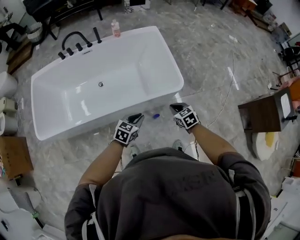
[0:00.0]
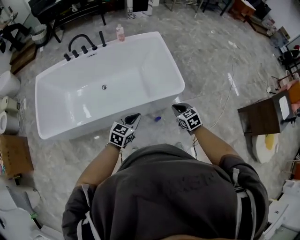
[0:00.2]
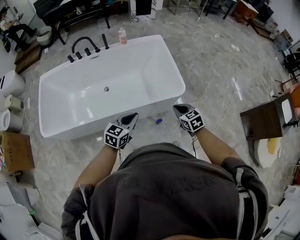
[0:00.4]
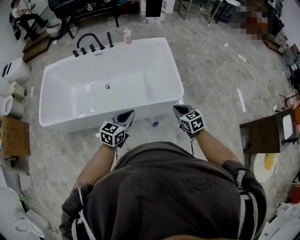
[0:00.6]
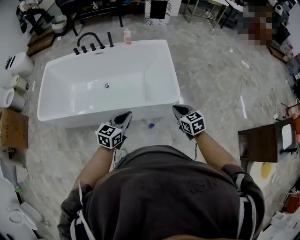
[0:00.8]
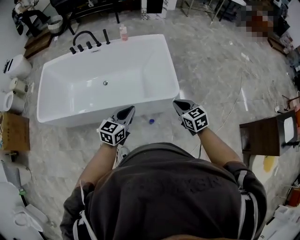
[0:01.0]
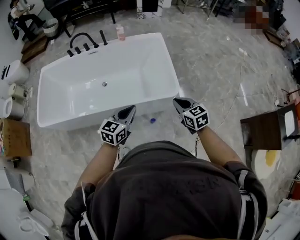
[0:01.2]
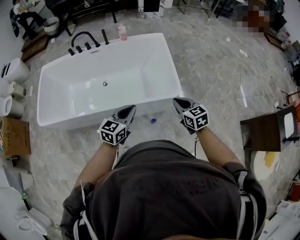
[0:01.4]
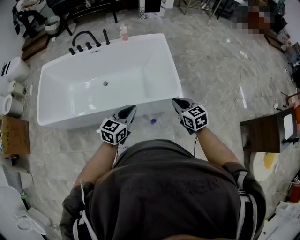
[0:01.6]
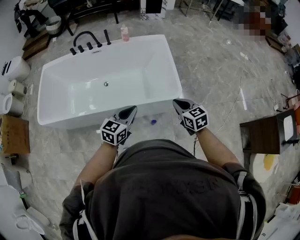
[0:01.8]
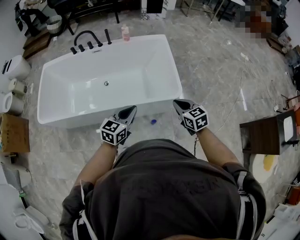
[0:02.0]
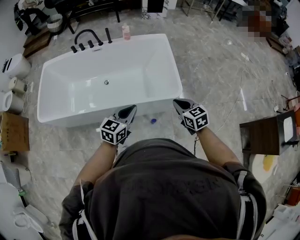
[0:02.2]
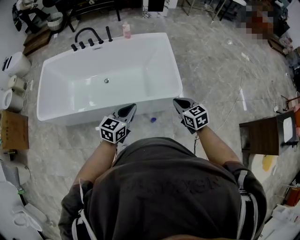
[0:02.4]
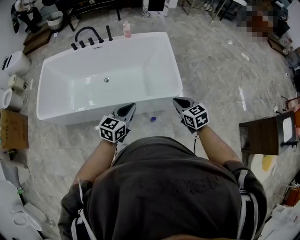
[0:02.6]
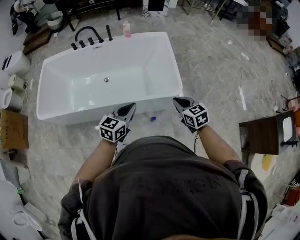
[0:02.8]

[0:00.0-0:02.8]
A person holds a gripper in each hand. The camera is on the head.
0:00.0 to 0:01.4: The right gripper shifts approximately 15 cm upward and to the right. The left gripper travels upward by about 15 cm, and swivels about 20 degrees.
0:01.4 to 0:02.8: The grippers move only a little.

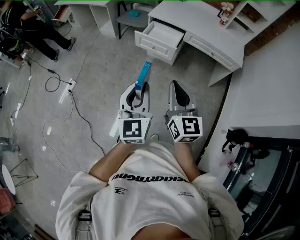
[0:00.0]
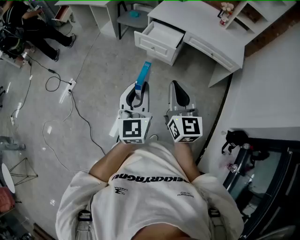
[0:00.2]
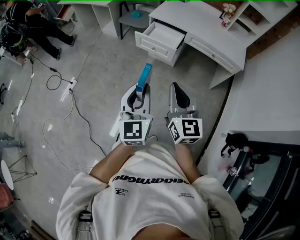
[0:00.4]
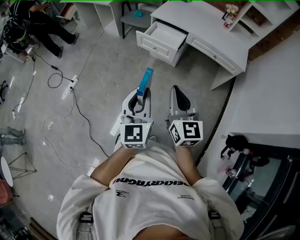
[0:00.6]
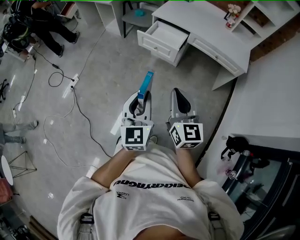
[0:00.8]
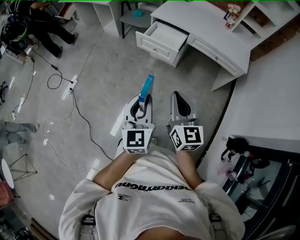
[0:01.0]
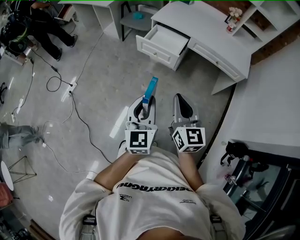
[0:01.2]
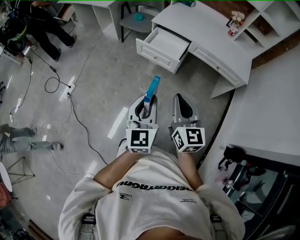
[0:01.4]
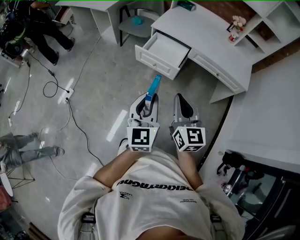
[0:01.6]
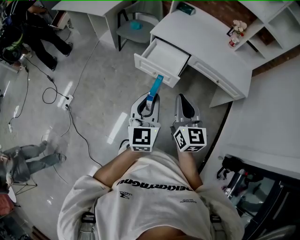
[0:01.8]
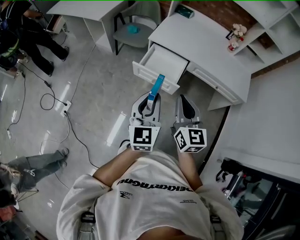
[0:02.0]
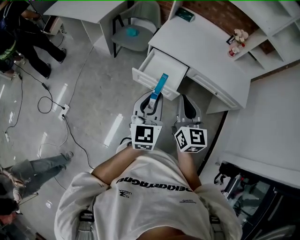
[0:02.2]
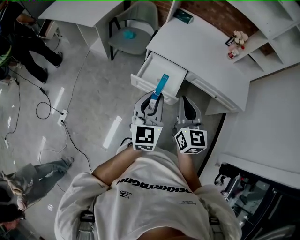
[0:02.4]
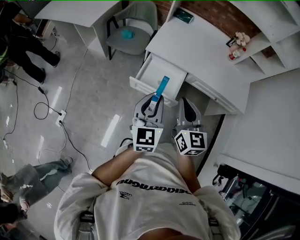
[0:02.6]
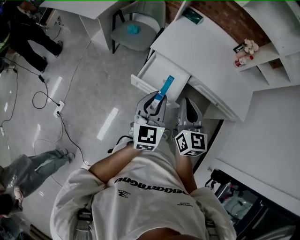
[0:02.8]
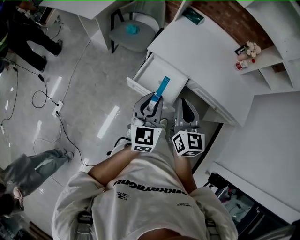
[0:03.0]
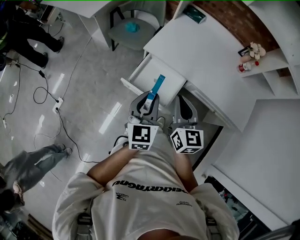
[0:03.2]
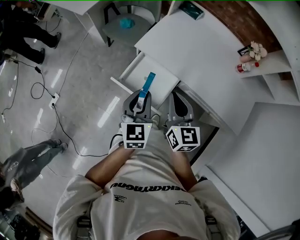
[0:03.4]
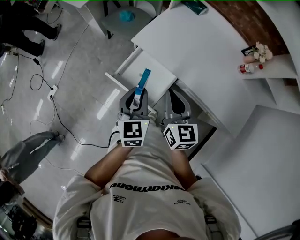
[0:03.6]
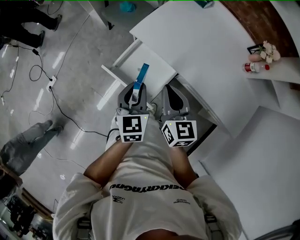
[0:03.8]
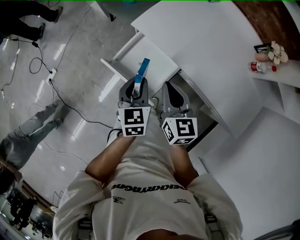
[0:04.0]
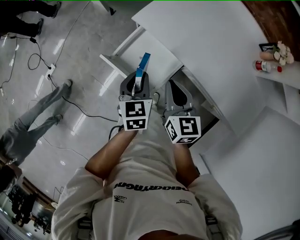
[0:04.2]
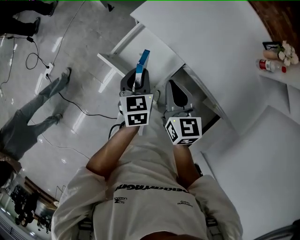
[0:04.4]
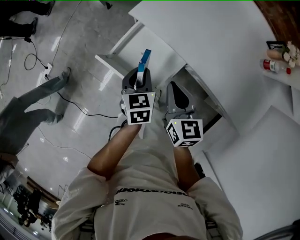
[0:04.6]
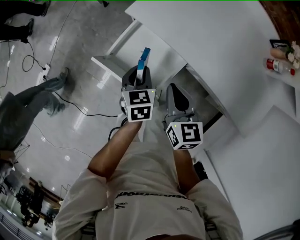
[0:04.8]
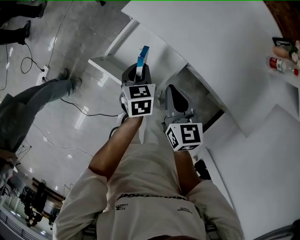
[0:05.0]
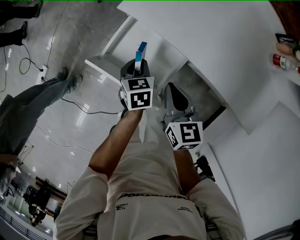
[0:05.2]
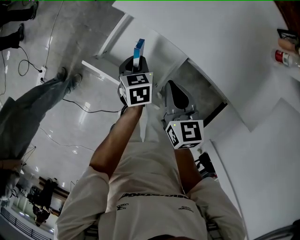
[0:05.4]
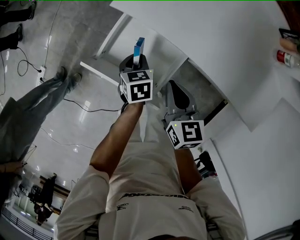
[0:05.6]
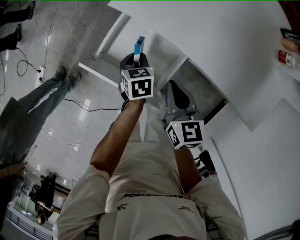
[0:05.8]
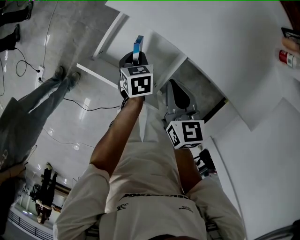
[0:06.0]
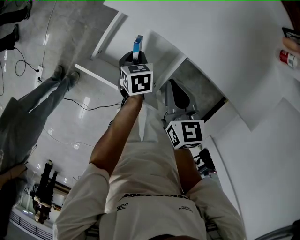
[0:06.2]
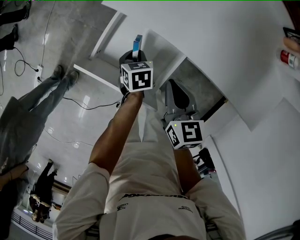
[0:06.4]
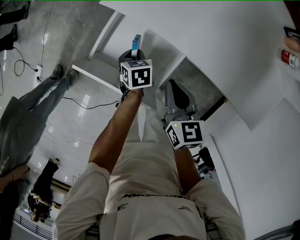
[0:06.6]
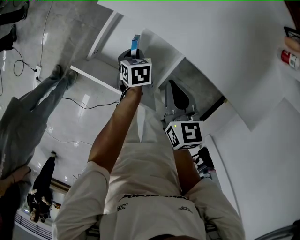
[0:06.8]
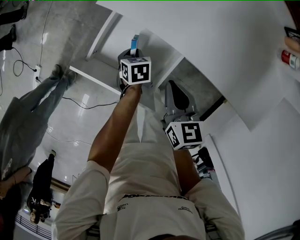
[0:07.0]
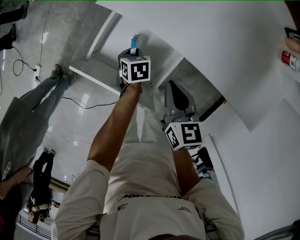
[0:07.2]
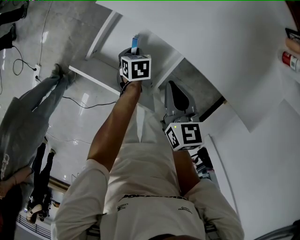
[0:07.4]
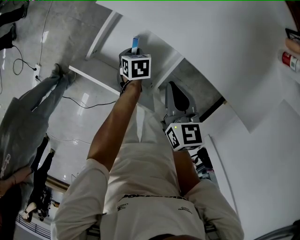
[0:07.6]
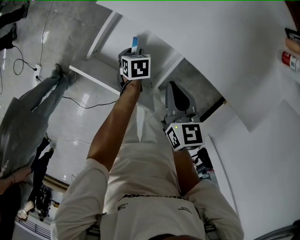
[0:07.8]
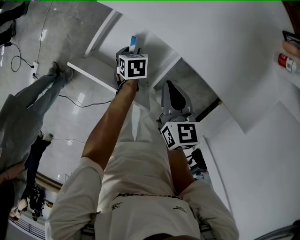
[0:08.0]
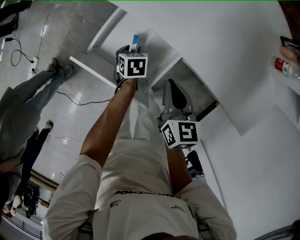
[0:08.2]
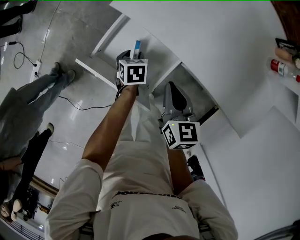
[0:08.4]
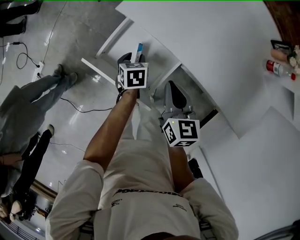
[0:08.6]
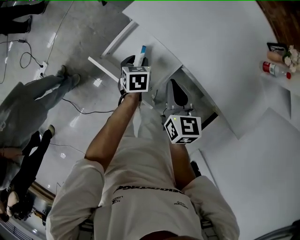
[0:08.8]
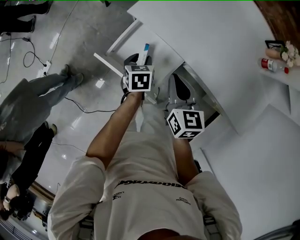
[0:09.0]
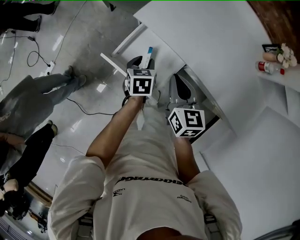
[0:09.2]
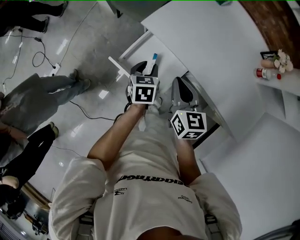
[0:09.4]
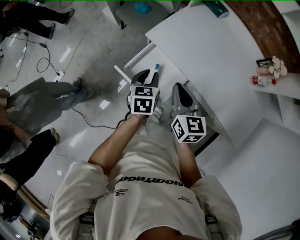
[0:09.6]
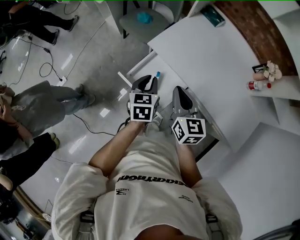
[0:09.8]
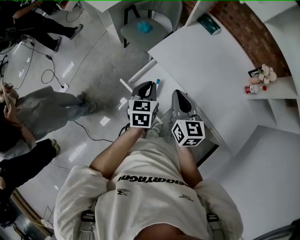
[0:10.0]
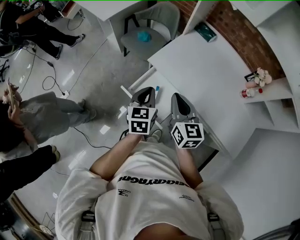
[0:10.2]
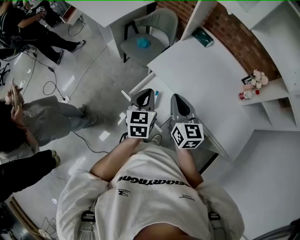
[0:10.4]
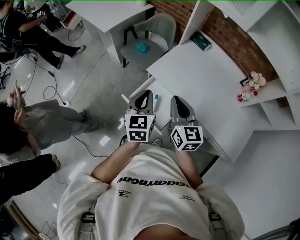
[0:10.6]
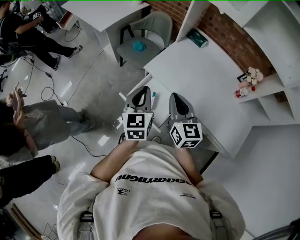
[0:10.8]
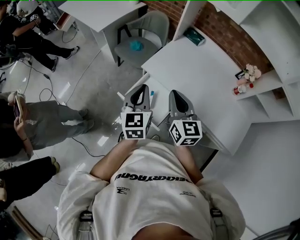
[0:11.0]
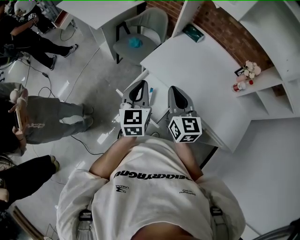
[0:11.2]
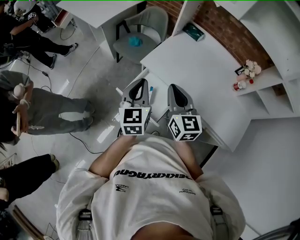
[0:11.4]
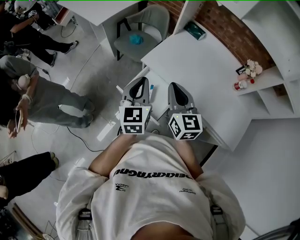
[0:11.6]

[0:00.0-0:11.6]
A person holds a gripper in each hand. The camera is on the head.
0:00.0 to 0:01.4: The left gripper goes about 15 cm forward, downward and to the right. The right gripper moves forward and downward, some 10 cm.
0:01.4 to 0:02.8: The grippers both shift forward by about 40 cm.
0:02.8 to 0:04.4: The grippers both shift downward, forward and to the right by some 30 cm. The right gripper rotates roughly 30 degrees, while the left gripper tilts its fingers about 30 degrees downward.
0:04.4 to 0:05.8: The left gripper shifts roughly 20 cm downward, and swivels roughly 20 degrees. Meanwhile the right gripper moves downward, approximately 10 cm.
0:05.8 to 0:07.2: The left gripper moves downward, roughly 10 cm.
0:07.2 to 0:08.8: The two grippers go about 10 cm upward. The left gripper opens its fingers.
0:08.8 to 0:10.2: Both grippers move upward, roughly 30 cm. The left gripper tips its fingers upward by about 30 degrees, and closes its fingers.
0:10.2 to 0:11.6: The left gripper goes approximately 10 cm upward, while the right gripper heads upward, covering approximately 5 cm.

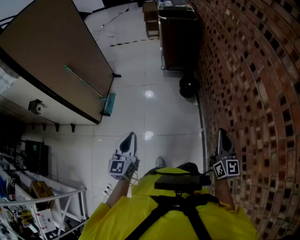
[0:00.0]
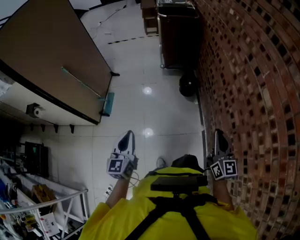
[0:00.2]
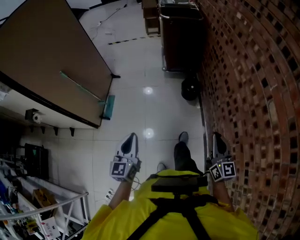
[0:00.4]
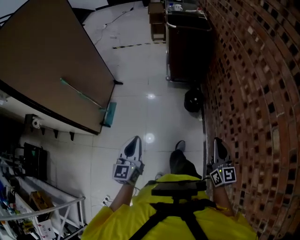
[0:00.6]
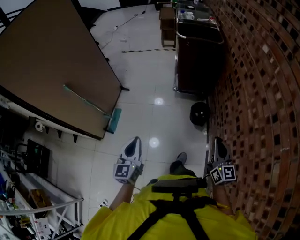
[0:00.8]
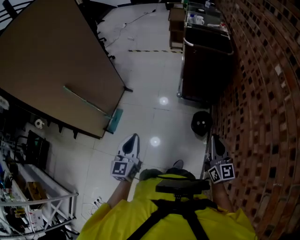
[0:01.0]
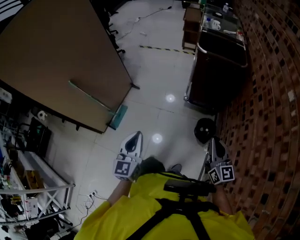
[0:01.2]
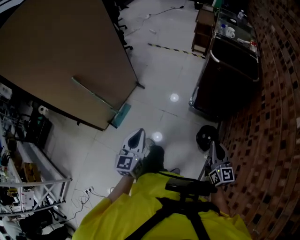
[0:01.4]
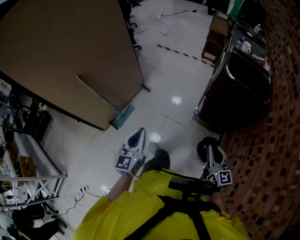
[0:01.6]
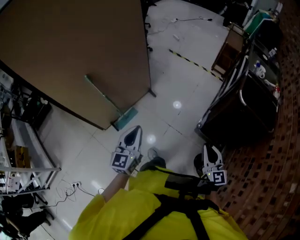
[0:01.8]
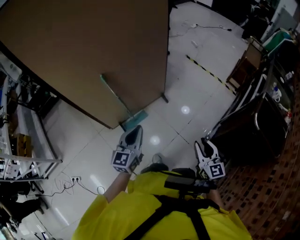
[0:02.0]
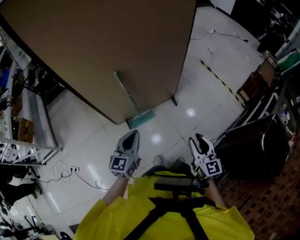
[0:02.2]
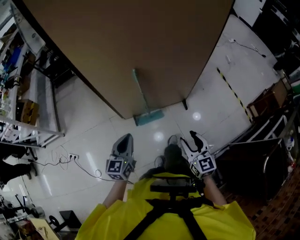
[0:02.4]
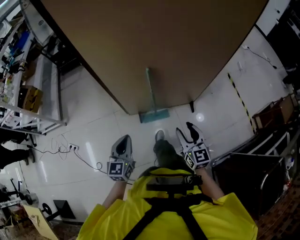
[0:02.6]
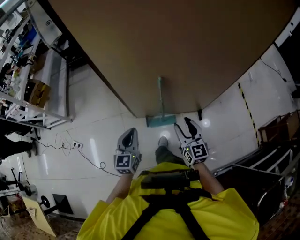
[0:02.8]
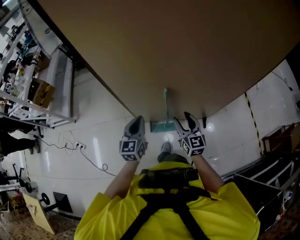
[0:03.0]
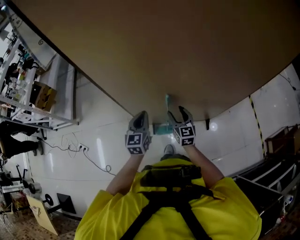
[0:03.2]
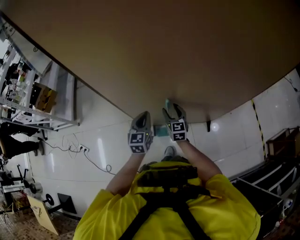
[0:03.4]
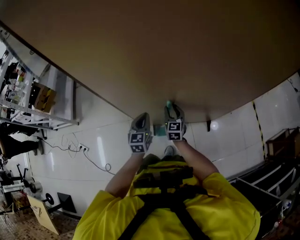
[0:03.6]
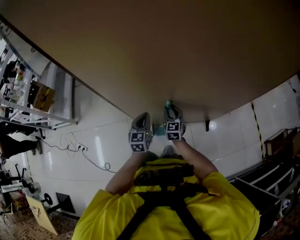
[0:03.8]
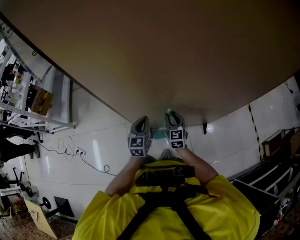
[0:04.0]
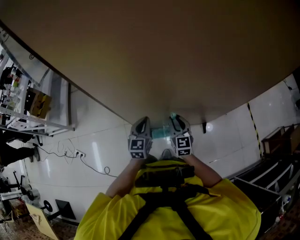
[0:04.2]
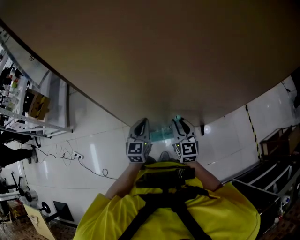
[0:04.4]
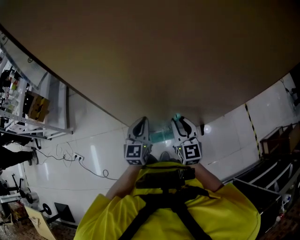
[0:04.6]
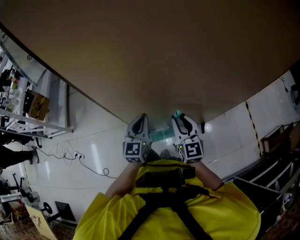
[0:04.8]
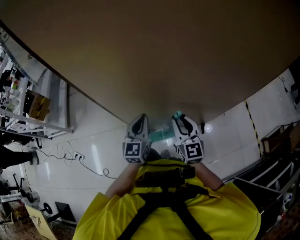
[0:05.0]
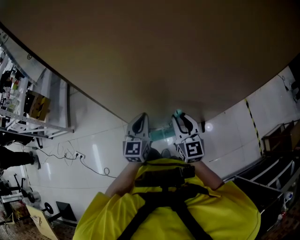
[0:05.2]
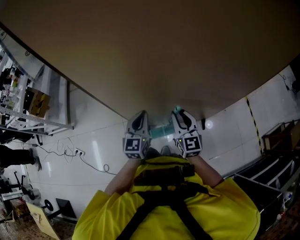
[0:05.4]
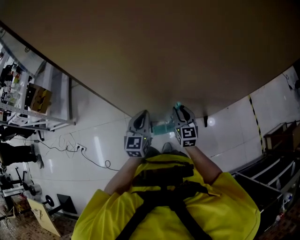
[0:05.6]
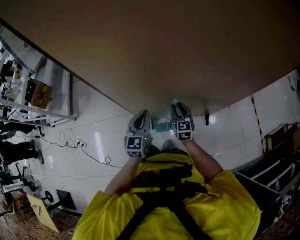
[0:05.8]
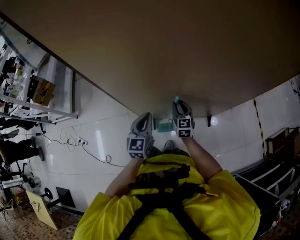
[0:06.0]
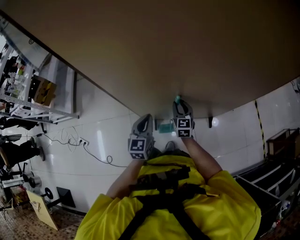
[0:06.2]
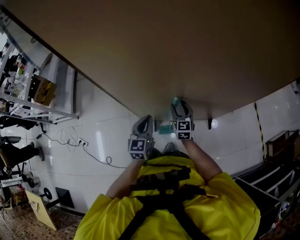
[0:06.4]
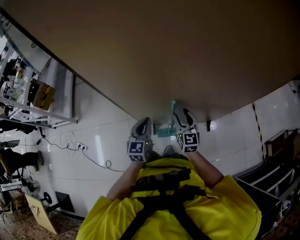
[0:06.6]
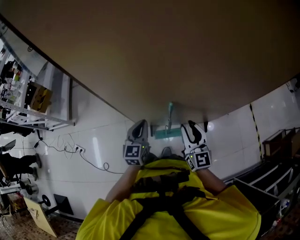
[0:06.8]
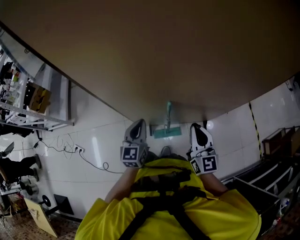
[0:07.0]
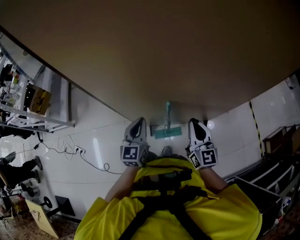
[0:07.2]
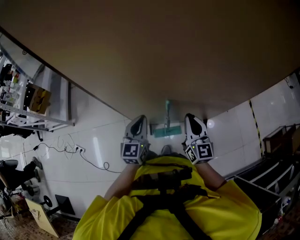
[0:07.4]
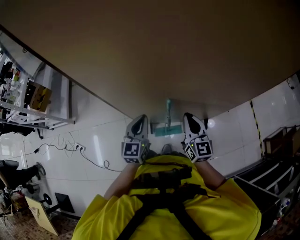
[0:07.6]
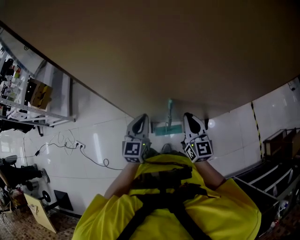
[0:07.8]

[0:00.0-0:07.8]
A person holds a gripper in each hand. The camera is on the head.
0:00.0 to 0:01.6: The pair of grippers is taken about 60 cm. The right gripper changes its angle by about 40 degrees. Meanwhile the left gripper turns by approximately 20 degrees.
0:01.6 to 0:03.2: The two grippers travel together, about 70 cm. The left gripper changes its angle by roughly 60 degrees, while the right gripper rotates roughly 60 degrees, and opens up.
0:03.2 to 0:04.6: The right gripper travels upward by approximately 15 cm, and closes up; the left gripper shifts by roughly 5 cm.
0:04.6 to 0:06.2: The right gripper shifts about 20 cm downward. Meanwhile the left gripper shifts approximately 5 cm downward.
0:06.2 to 0:07.8: The right gripper heads upward and backward, covering some 15 cm, and closes.

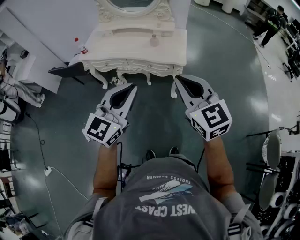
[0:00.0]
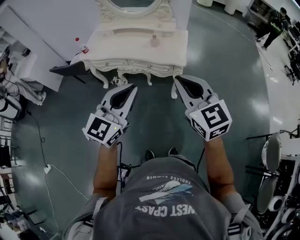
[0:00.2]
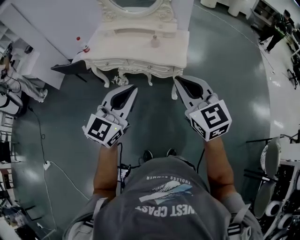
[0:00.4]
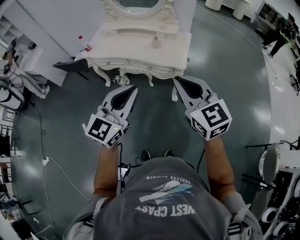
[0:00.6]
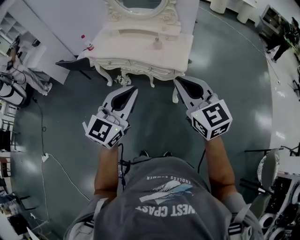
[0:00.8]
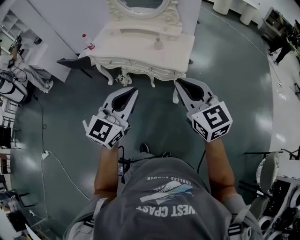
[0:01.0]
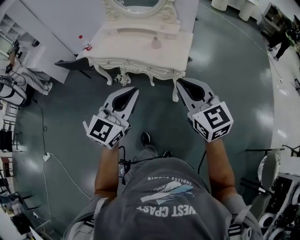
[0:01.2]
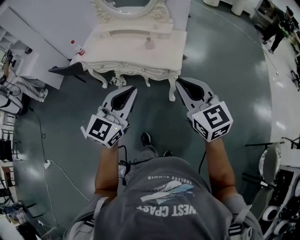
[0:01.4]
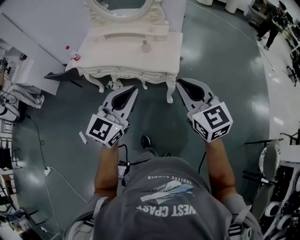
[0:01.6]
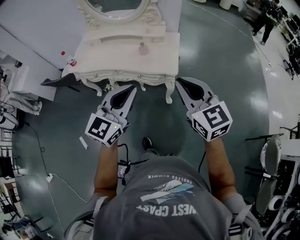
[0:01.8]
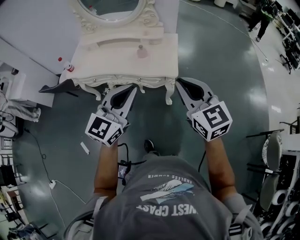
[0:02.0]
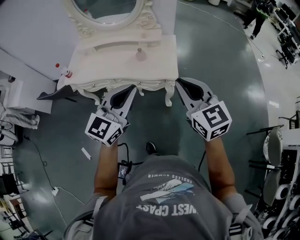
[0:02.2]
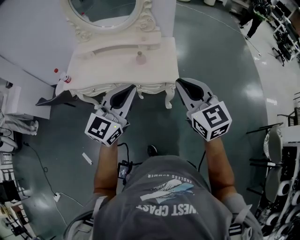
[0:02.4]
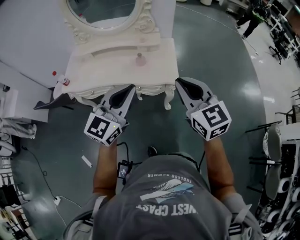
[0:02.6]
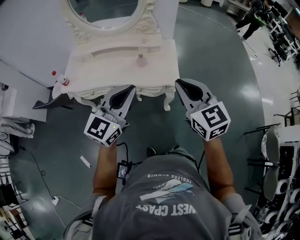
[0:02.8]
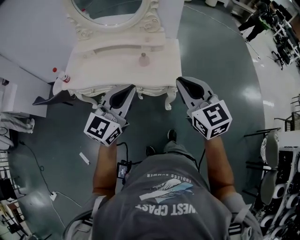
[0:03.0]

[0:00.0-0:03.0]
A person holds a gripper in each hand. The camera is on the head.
0:00.0 to 0:01.6: The grippers both shift to the right and forward by approximately 10 cm.
0:01.6 to 0:03.0: Both grippers move forward and to the left, roughly 15 cm.
